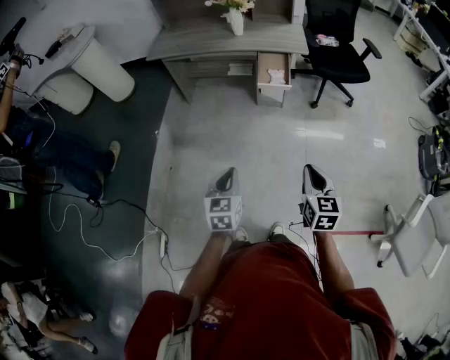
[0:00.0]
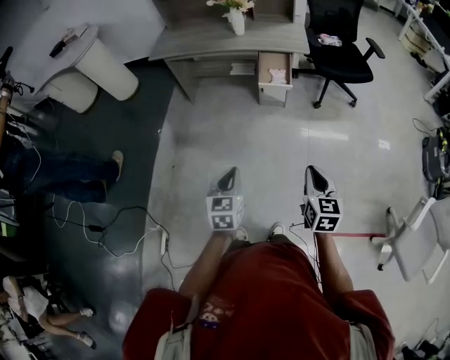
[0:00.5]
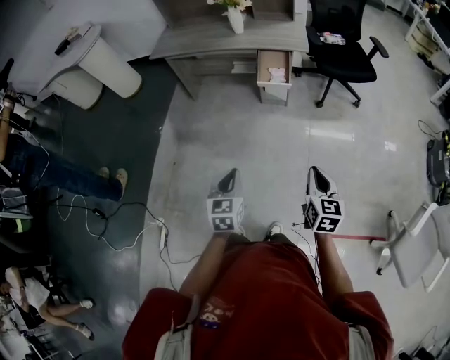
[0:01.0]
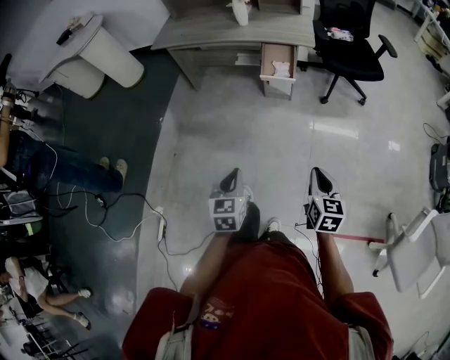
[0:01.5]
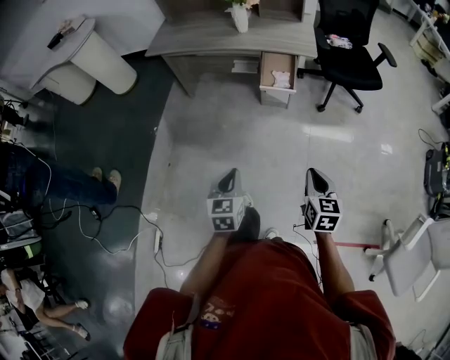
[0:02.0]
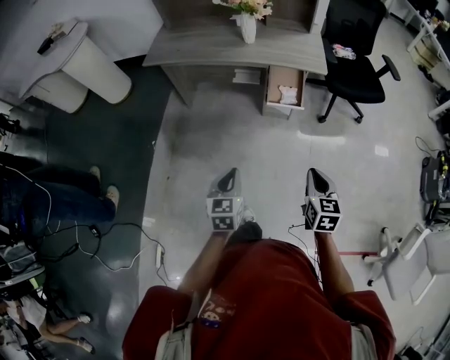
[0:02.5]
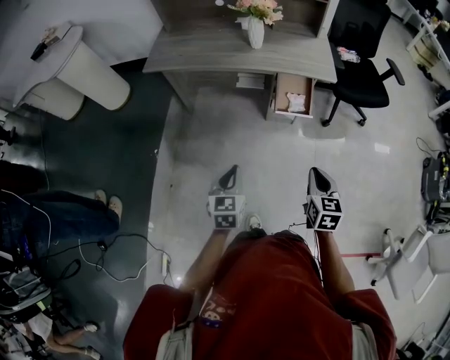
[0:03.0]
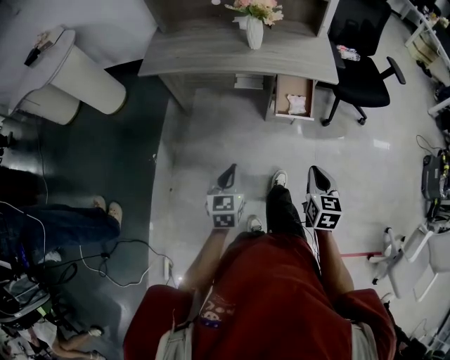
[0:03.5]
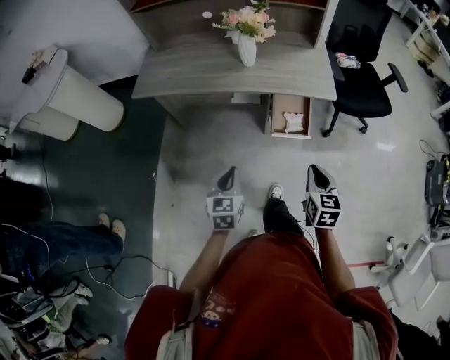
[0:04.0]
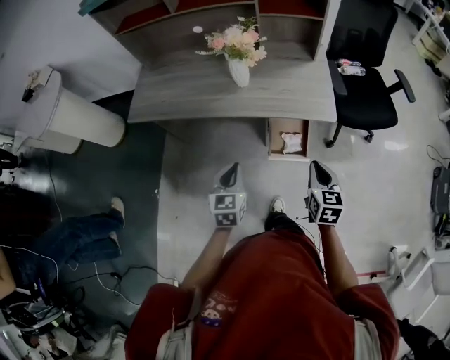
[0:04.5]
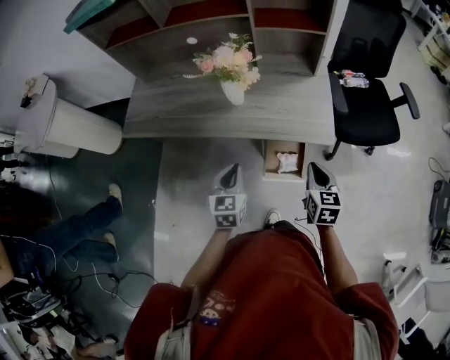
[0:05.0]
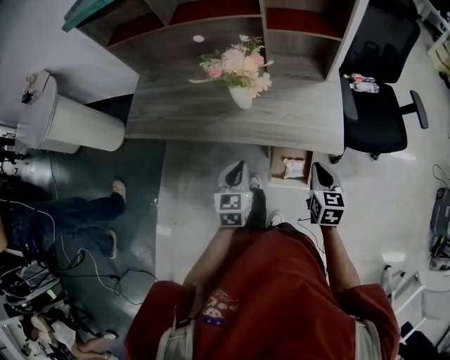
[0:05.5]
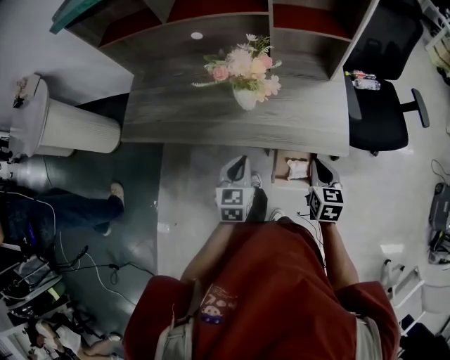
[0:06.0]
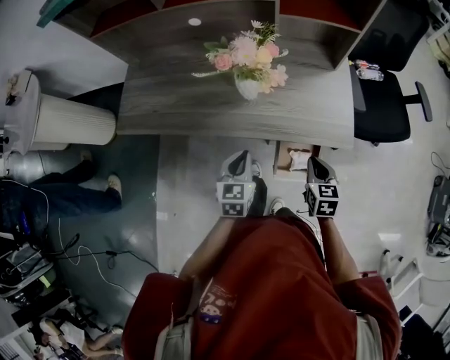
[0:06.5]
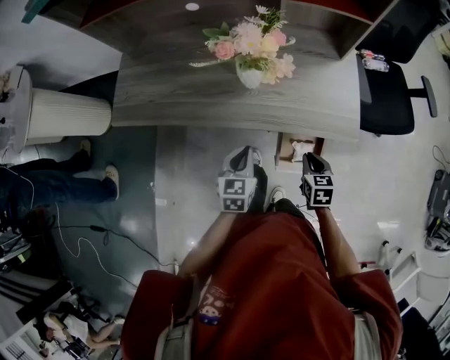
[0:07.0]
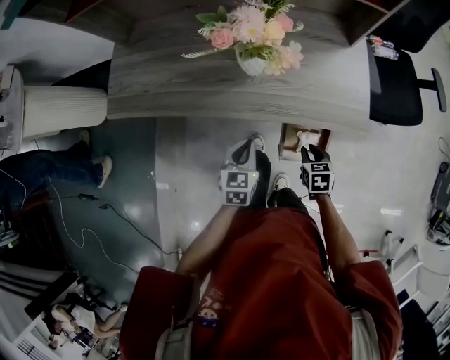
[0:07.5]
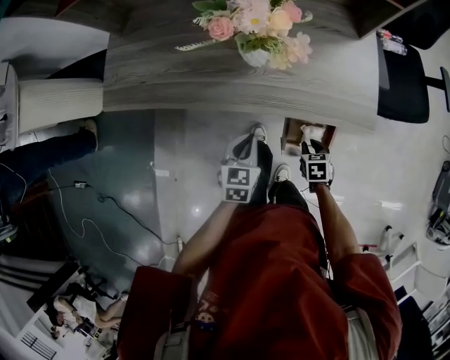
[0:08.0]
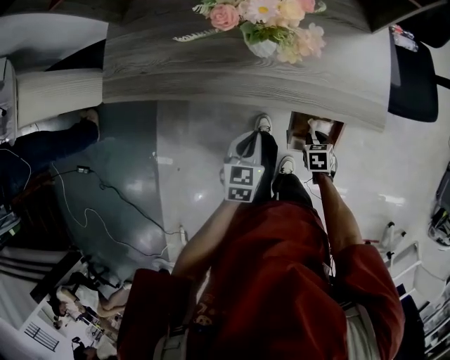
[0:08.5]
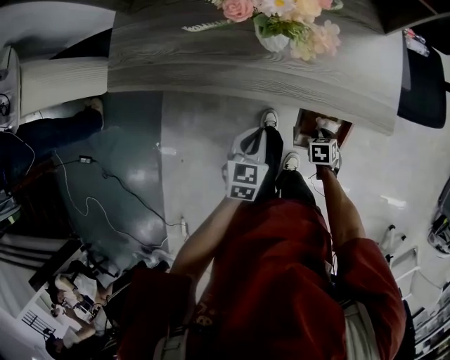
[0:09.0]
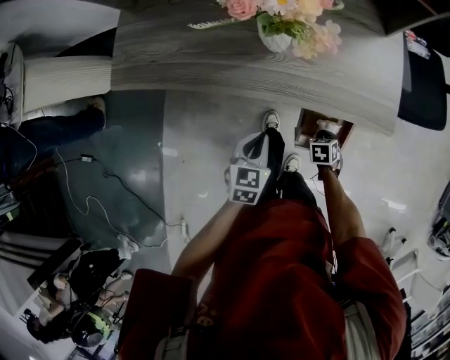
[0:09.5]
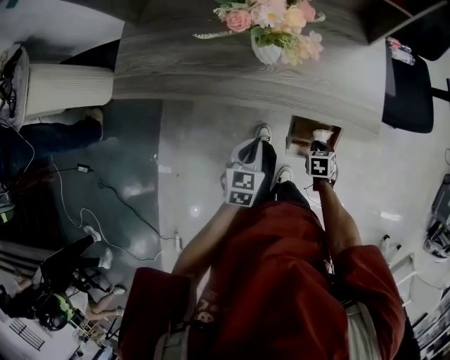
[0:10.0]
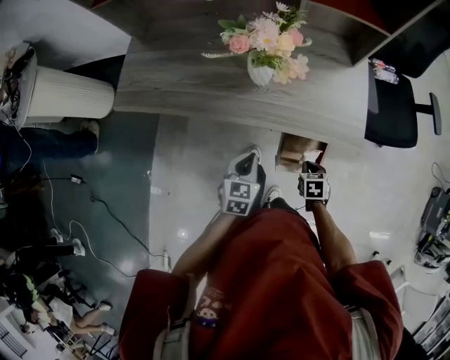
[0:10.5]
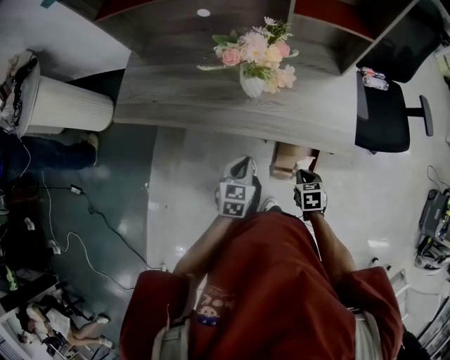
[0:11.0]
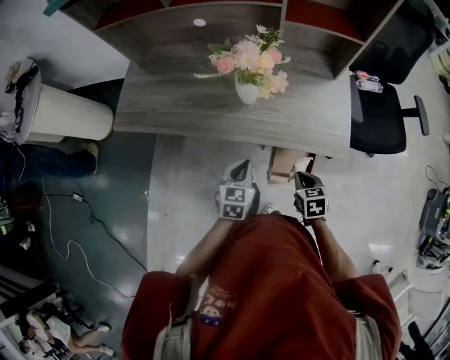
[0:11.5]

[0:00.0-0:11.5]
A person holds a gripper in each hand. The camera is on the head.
0:00.0 to 0:02.0: The right gripper moves forward, to the right and downward, some 10 cm. Meanwhile the left gripper is displaced forward and to the right by some 10 cm.
0:02.0 to 0:04.0: Both grippers travel together forward, about 30 cm.
0:04.0 to 0:06.0: Both grippers travel together forward, approximately 30 cm.
0:06.0 to 0:07.5: The left gripper goes about 10 cm downward. Meanwhile the right gripper is displaced downward by approximately 20 cm, and swivels approximately 30 degrees.
0:07.5 to 0:09.5: The right gripper heads downward, covering approximately 10 cm.
0:09.5 to 0:11.5: The left gripper moves upward, some 5 cm; the right gripper shifts about 20 cm upward, and turns by approximately 20 degrees.

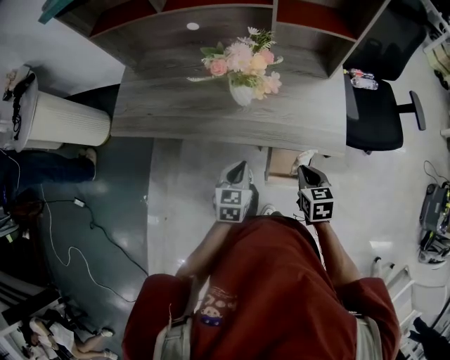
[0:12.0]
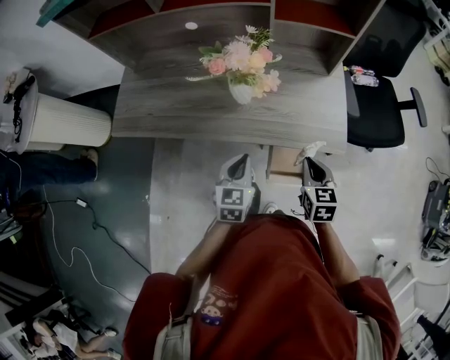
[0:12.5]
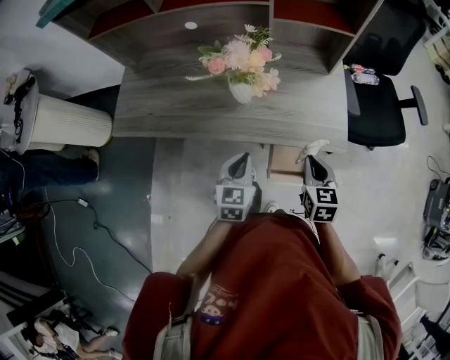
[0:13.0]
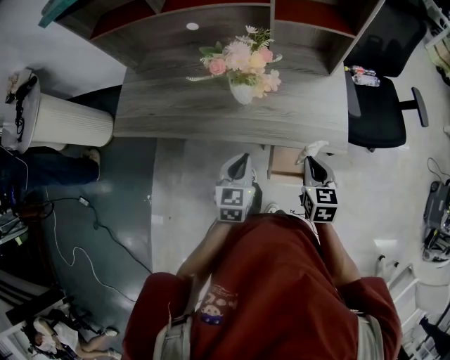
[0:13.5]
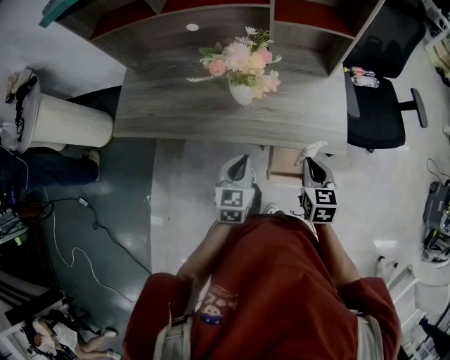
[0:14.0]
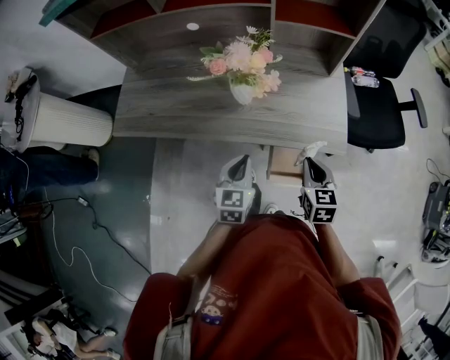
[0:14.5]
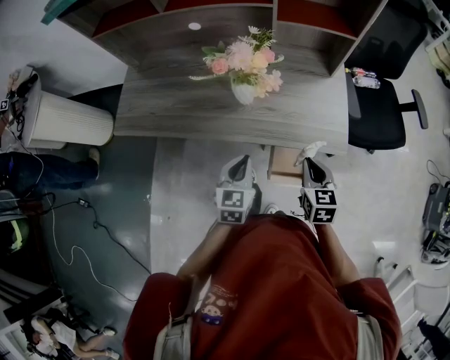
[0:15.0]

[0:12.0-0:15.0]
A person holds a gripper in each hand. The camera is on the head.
0:12.0 to 0:13.5: There are only small adjustments of the grippers.
0:13.5 to 0:15.0: Both grippers stay about where they are.

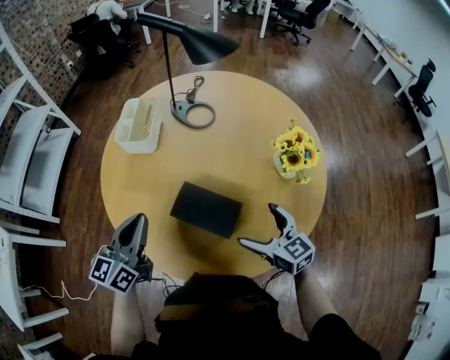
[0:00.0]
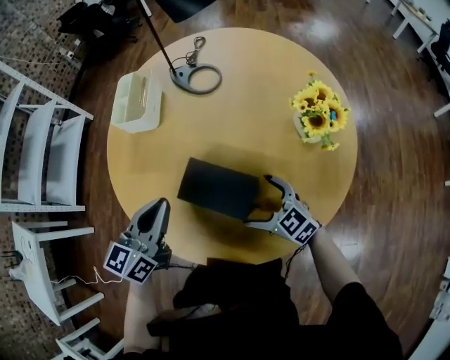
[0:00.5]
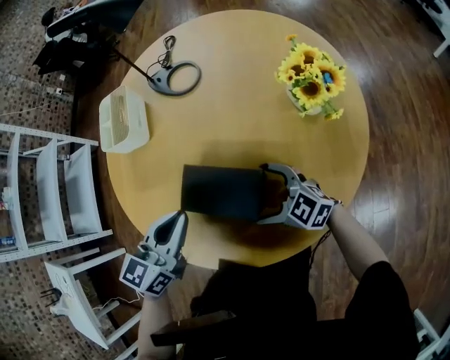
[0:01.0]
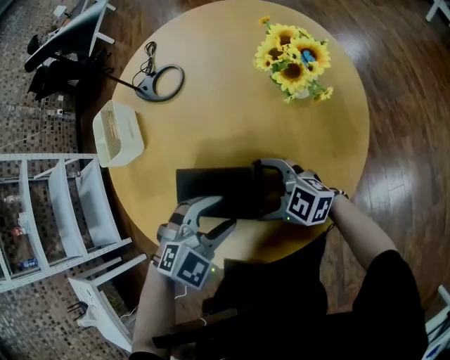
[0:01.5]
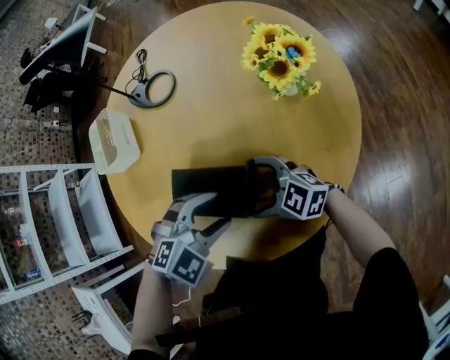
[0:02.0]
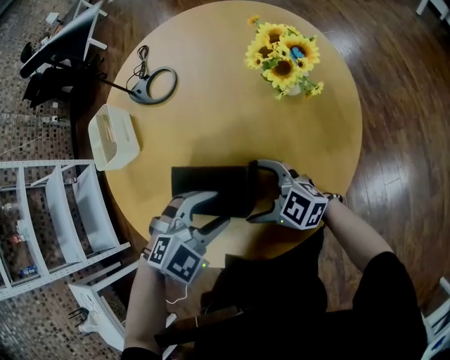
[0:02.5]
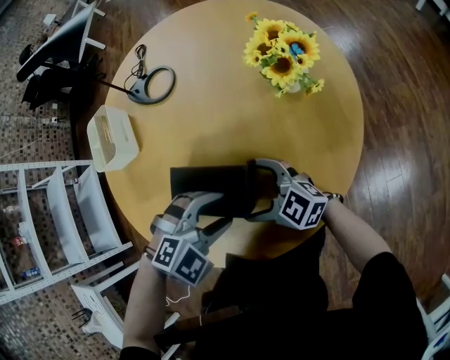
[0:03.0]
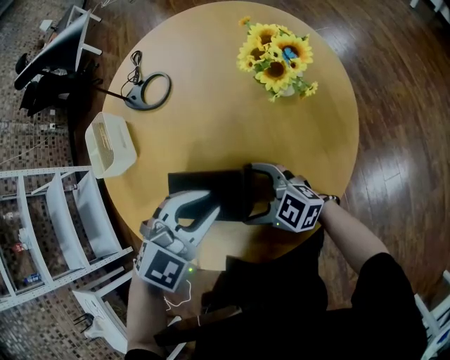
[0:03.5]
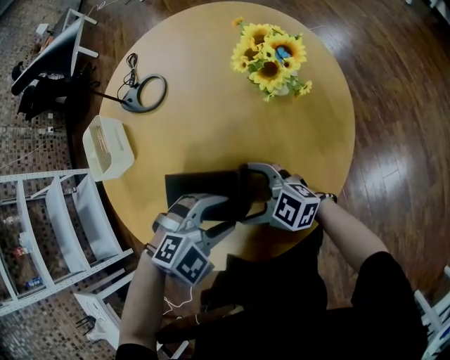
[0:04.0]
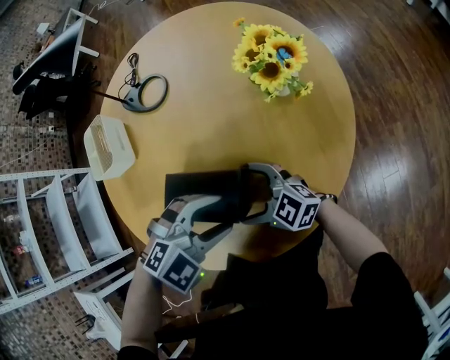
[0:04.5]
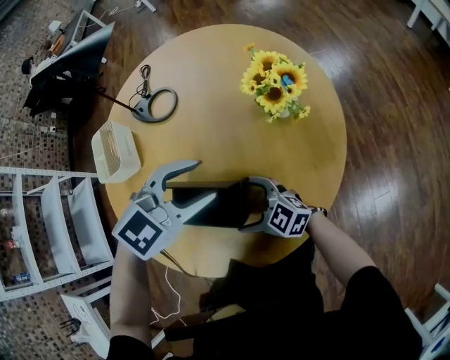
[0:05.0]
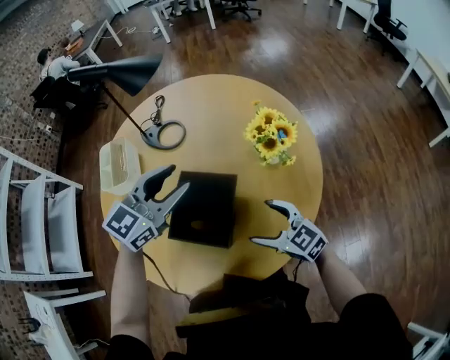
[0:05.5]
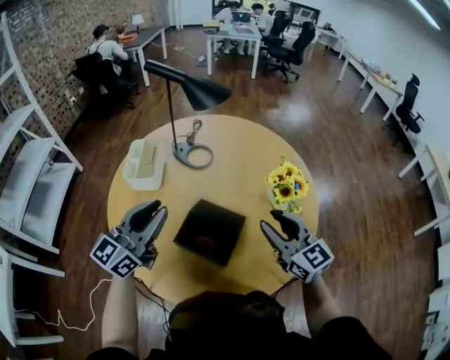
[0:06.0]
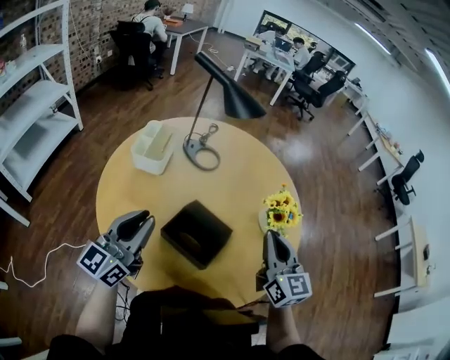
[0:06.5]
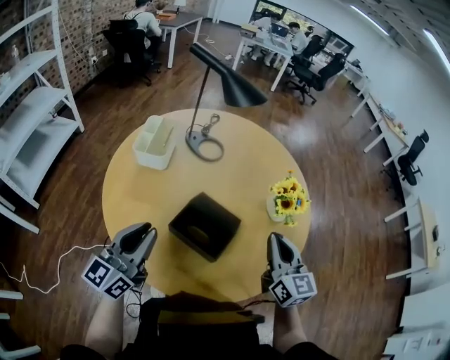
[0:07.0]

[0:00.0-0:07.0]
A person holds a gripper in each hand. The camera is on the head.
0:00.0 to 0:02.0: The left gripper moves about 25 cm, points its fingers roughly 50 degrees further downward, and opens its fingers. Meanwhile the right gripper is displaced downward by approximately 10 cm, and turns by some 20 degrees.
0:02.0 to 0:03.5: The left gripper goes some 5 cm upward, and closes up.
0:03.5 to 0:05.0: The left gripper moves some 10 cm, and opens up.
0:05.0 to 0:07.0: The left gripper ends up roughly 25 cm from where it was, points its fingers roughly 40 degrees further upward, and closes. The right gripper moves upward, roughly 25 cm, rotates approximately 40 degrees, and closes its fingers.

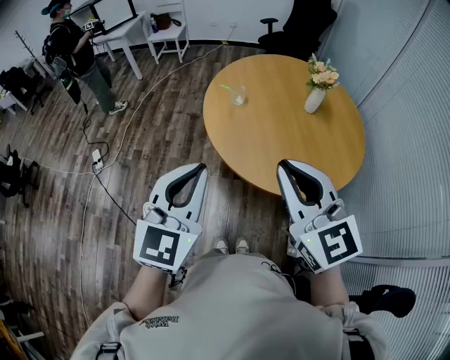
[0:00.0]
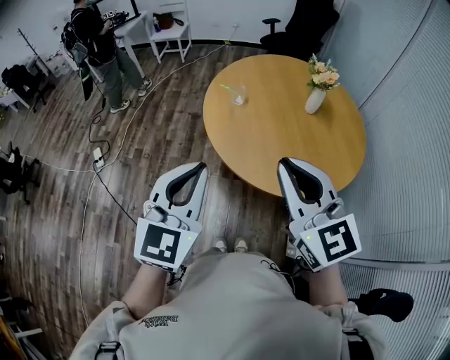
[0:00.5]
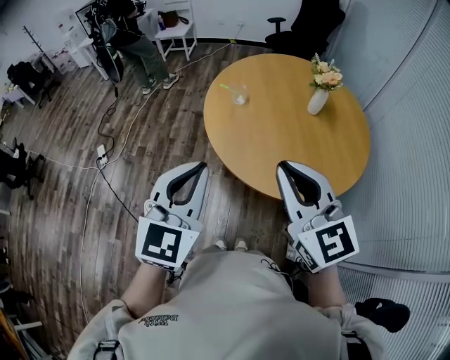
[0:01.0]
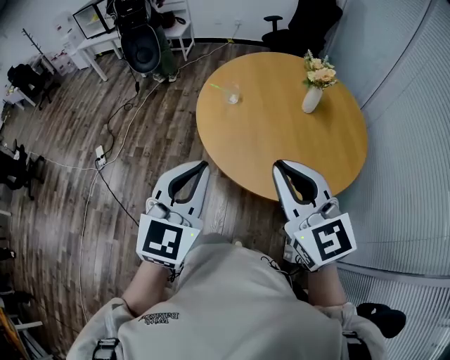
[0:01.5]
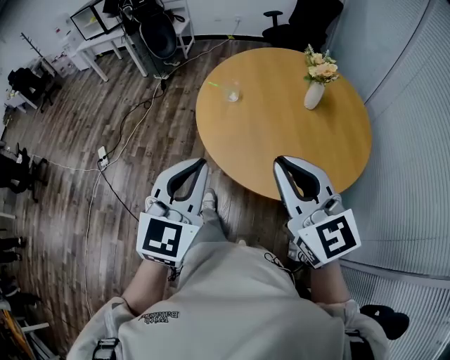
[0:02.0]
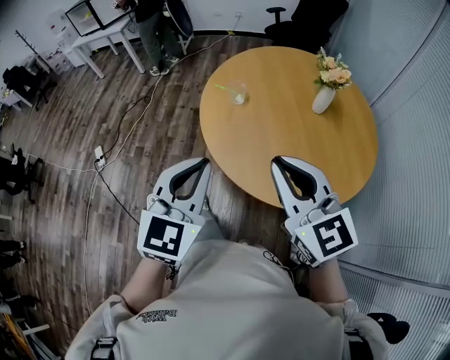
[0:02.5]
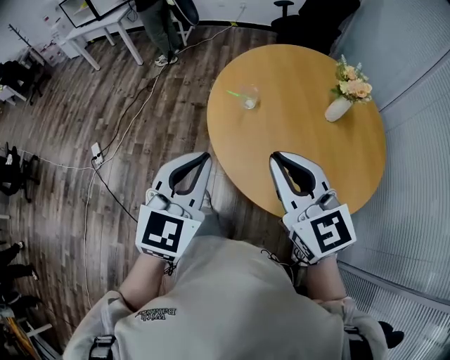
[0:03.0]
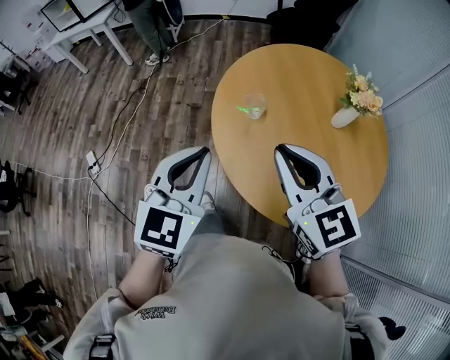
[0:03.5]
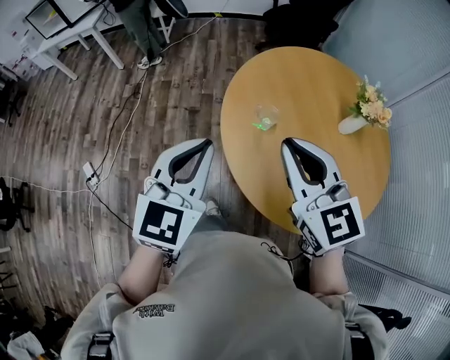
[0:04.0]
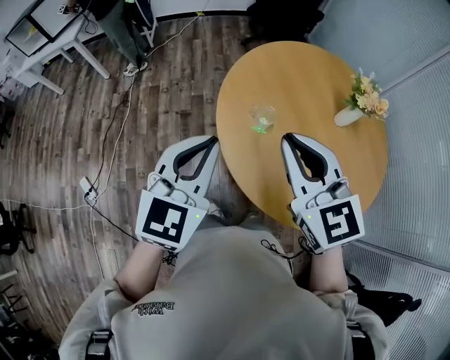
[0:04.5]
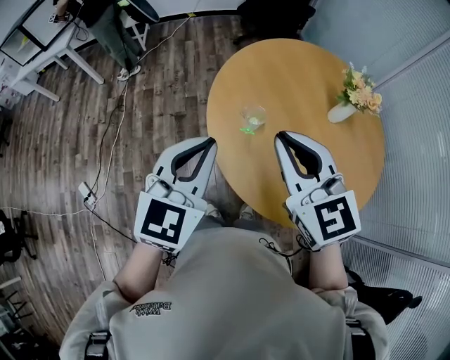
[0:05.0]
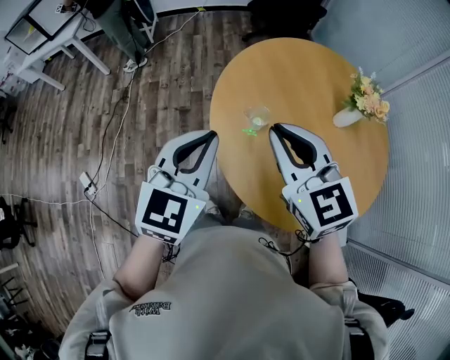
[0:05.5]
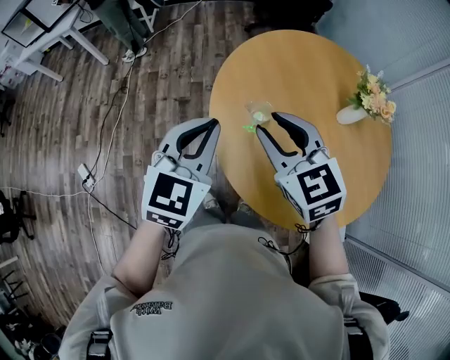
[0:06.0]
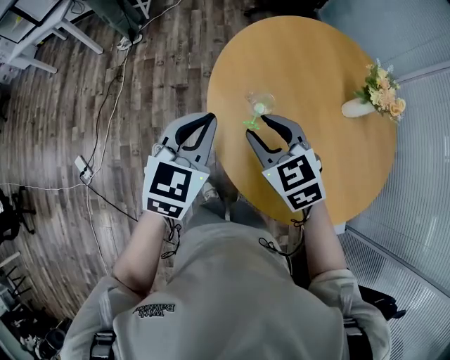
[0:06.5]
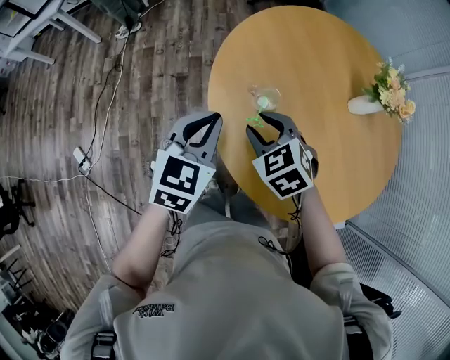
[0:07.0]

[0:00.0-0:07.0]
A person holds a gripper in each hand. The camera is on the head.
0:00.0 to 0:02.0: The two grippers go approximately 10 cm to the right.
0:02.0 to 0:03.5: Both grippers move forward and to the left, roughly 30 cm.
0:03.5 to 0:05.0: Both grippers move forward, about 10 cm.
0:05.0 to 0:07.0: The left gripper goes approximately 15 cm downward and forward; the right gripper heads downward, covering about 25 cm, angles its fingers downward, by about 40 degrees, and opens up.
